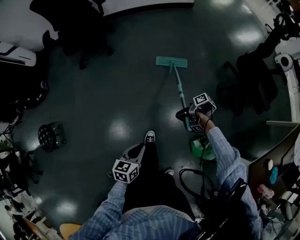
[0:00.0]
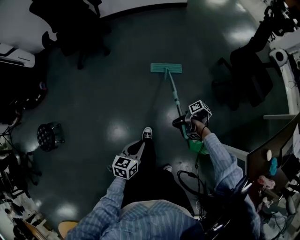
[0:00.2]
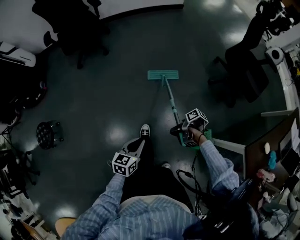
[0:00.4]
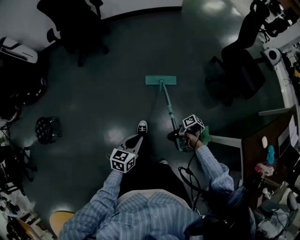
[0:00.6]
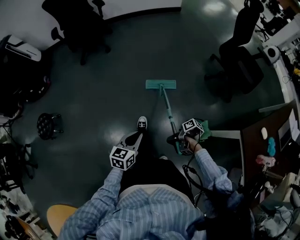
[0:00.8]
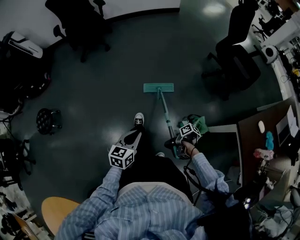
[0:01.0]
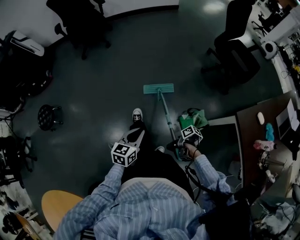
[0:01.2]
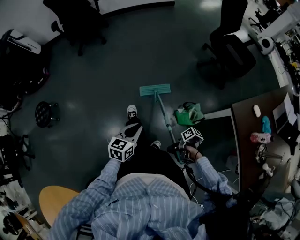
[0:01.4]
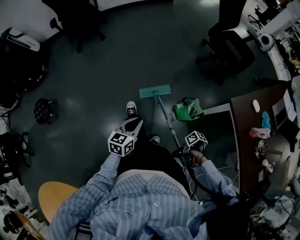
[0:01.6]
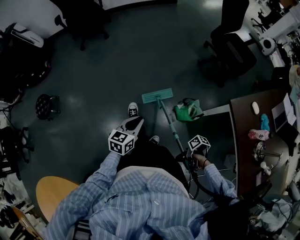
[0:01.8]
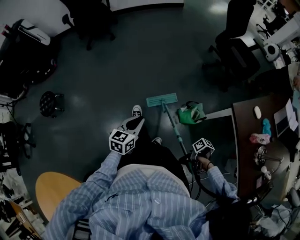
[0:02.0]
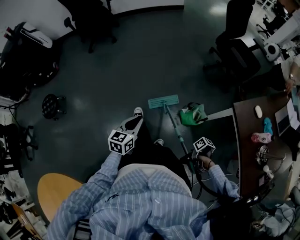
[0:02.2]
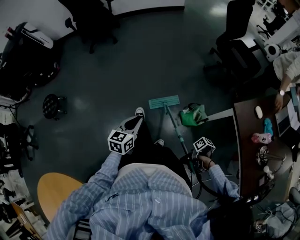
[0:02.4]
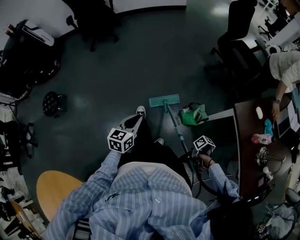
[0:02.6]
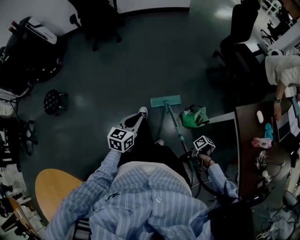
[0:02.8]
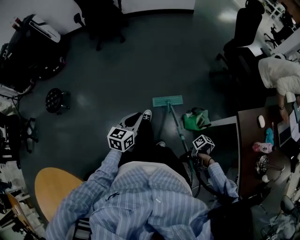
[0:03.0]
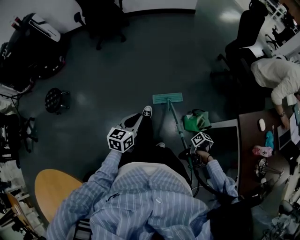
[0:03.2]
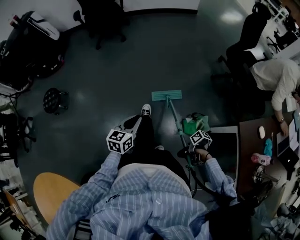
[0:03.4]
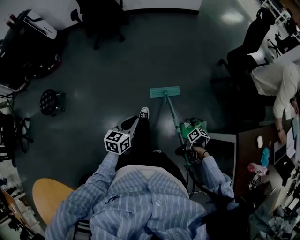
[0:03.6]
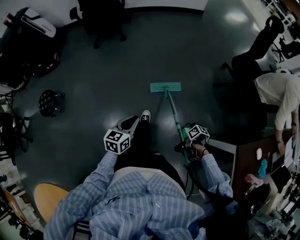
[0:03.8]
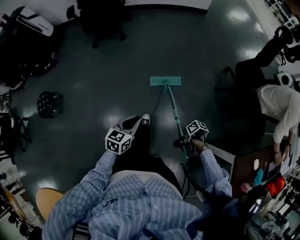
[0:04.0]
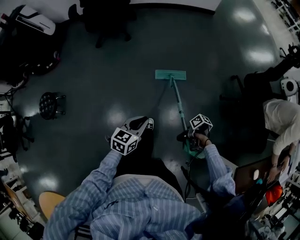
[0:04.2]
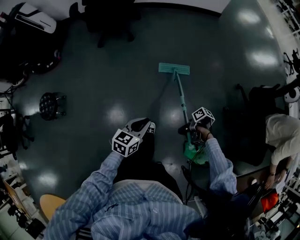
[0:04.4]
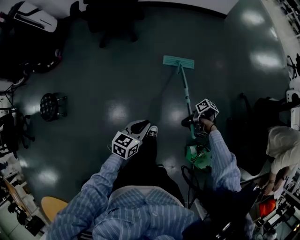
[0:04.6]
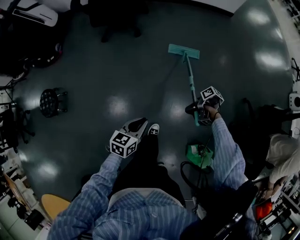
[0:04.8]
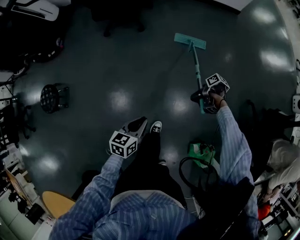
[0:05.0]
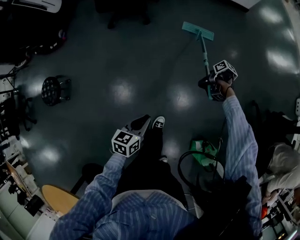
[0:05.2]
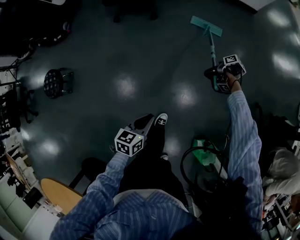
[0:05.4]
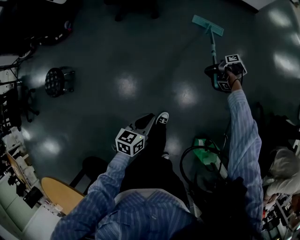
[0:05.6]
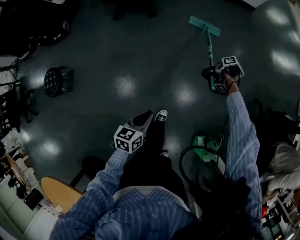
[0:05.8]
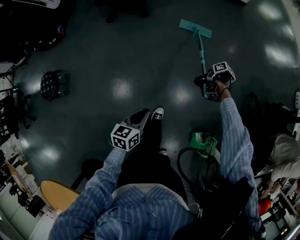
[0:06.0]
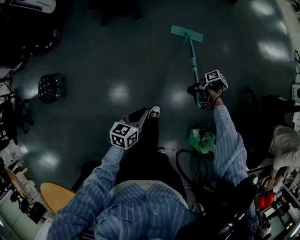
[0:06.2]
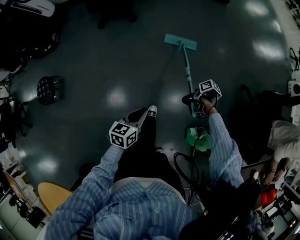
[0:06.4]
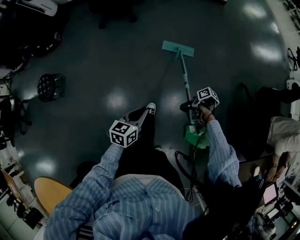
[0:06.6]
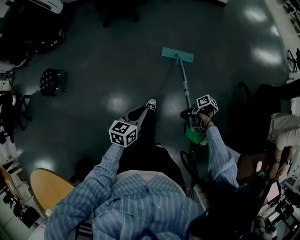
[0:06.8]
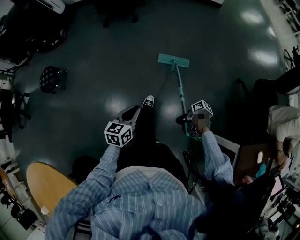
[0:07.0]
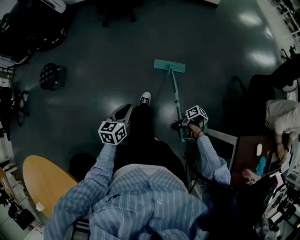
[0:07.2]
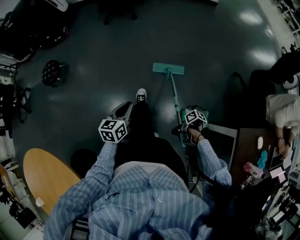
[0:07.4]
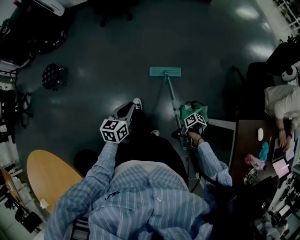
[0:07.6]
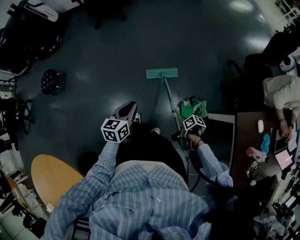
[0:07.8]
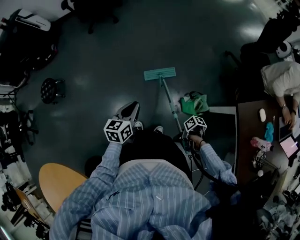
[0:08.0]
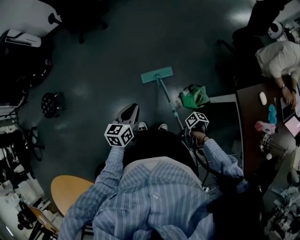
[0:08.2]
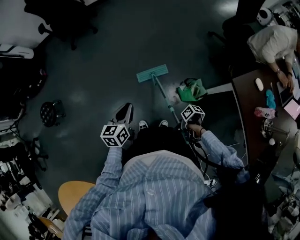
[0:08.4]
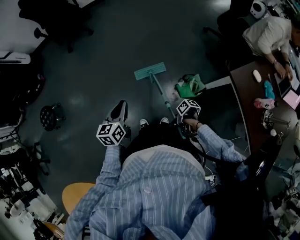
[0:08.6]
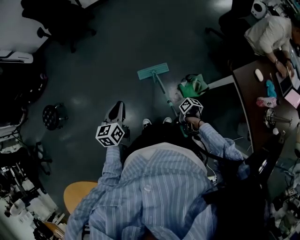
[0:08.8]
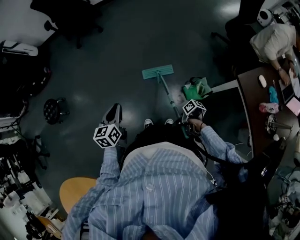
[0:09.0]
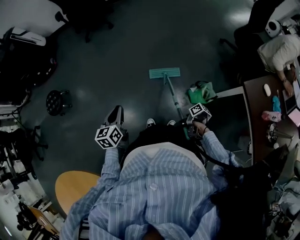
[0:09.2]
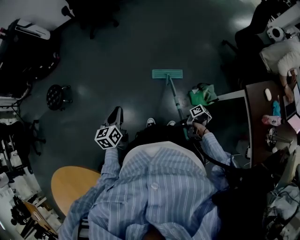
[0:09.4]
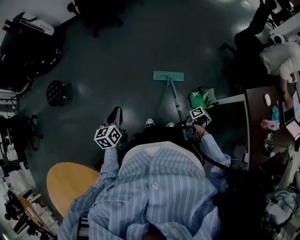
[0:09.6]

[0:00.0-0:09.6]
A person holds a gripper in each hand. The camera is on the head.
0:00.0 to 0:01.6: The left gripper shifts by approximately 30 cm.
0:01.6 to 0:03.2: The left gripper ends up approximately 10 cm from where it was.
0:03.2 to 0:04.8: The left gripper moves approximately 40 cm.
0:04.8 to 0:06.4: The left gripper moves approximately 10 cm.
0:06.4 to 0:08.0: The left gripper shifts by about 30 cm.
0:08.0 to 0:09.6: The left gripper moves approximately 20 cm.

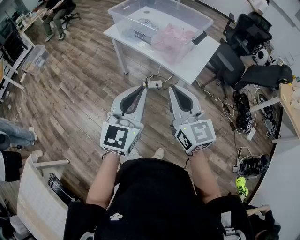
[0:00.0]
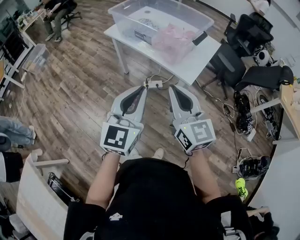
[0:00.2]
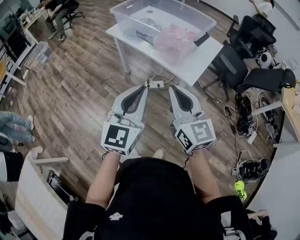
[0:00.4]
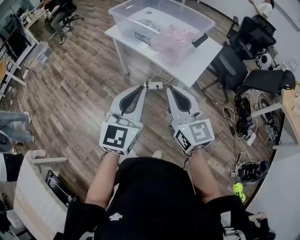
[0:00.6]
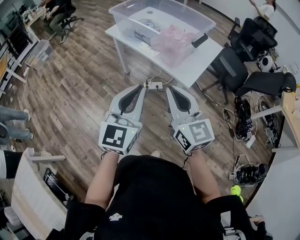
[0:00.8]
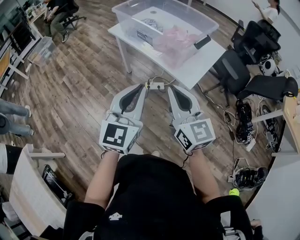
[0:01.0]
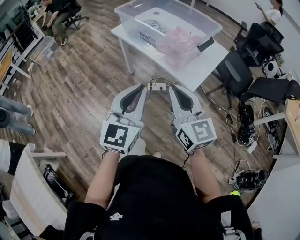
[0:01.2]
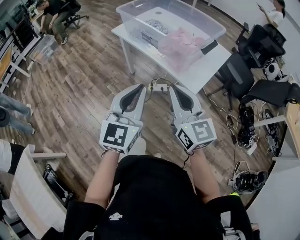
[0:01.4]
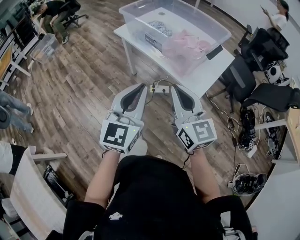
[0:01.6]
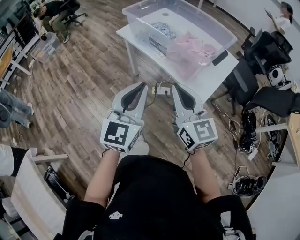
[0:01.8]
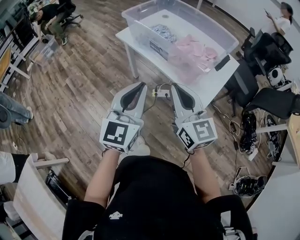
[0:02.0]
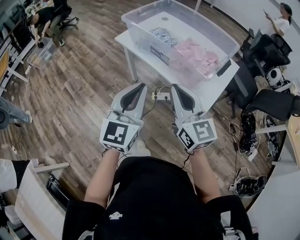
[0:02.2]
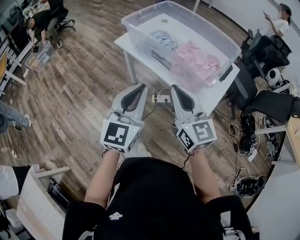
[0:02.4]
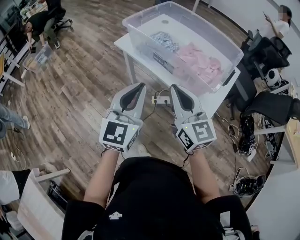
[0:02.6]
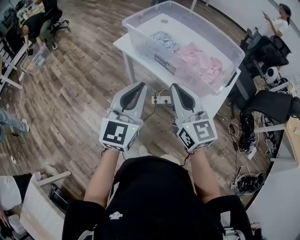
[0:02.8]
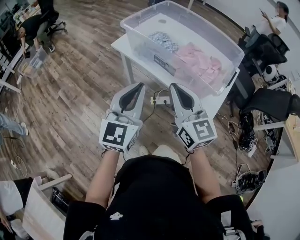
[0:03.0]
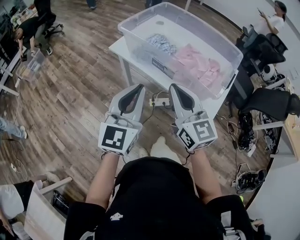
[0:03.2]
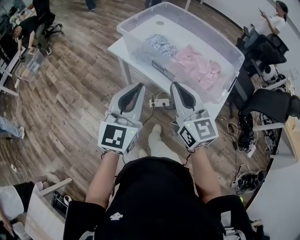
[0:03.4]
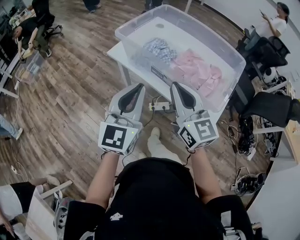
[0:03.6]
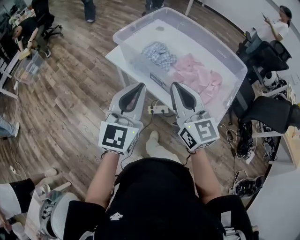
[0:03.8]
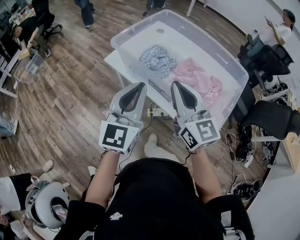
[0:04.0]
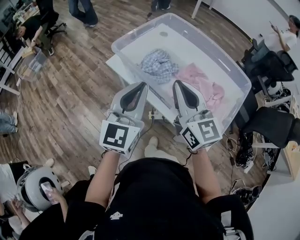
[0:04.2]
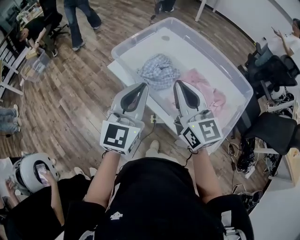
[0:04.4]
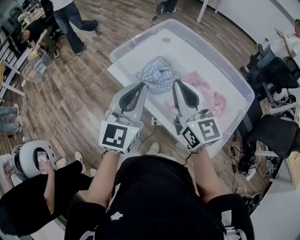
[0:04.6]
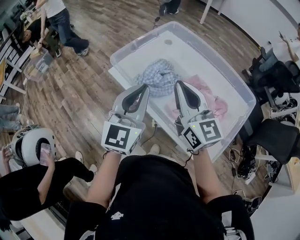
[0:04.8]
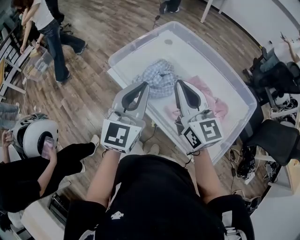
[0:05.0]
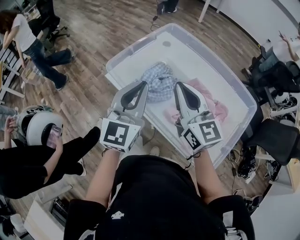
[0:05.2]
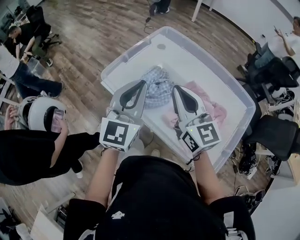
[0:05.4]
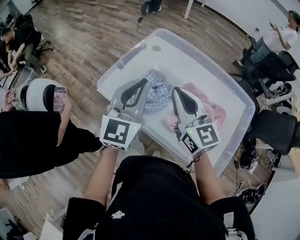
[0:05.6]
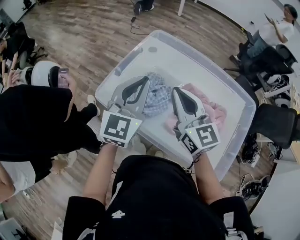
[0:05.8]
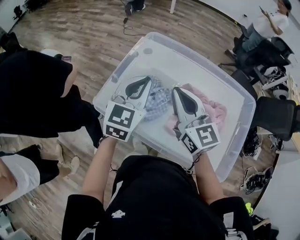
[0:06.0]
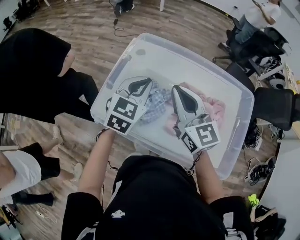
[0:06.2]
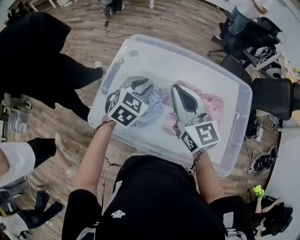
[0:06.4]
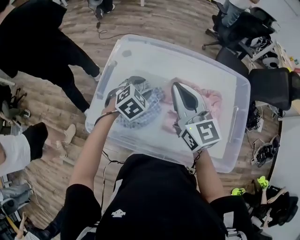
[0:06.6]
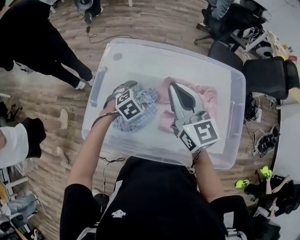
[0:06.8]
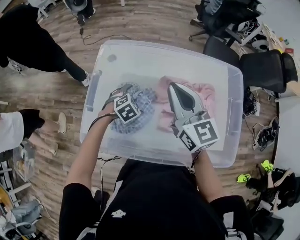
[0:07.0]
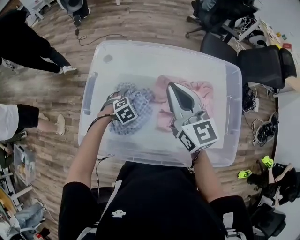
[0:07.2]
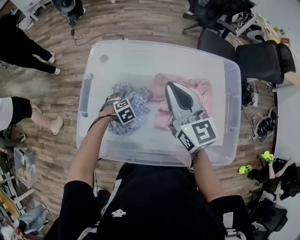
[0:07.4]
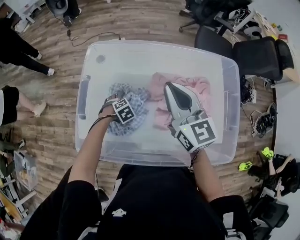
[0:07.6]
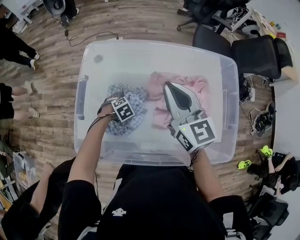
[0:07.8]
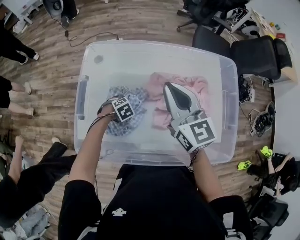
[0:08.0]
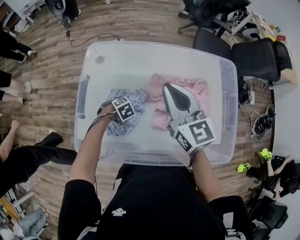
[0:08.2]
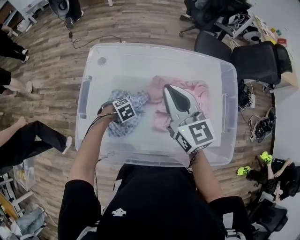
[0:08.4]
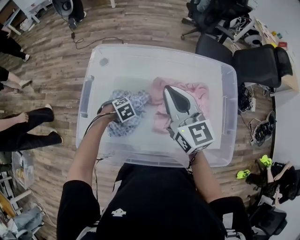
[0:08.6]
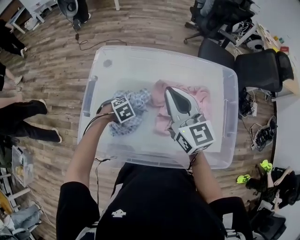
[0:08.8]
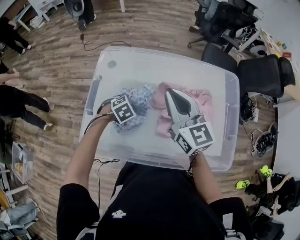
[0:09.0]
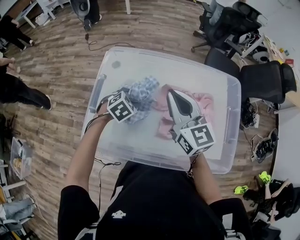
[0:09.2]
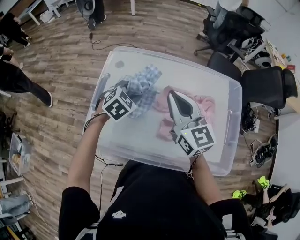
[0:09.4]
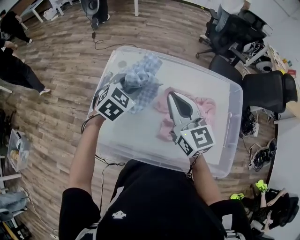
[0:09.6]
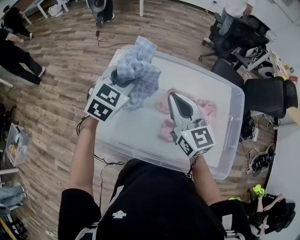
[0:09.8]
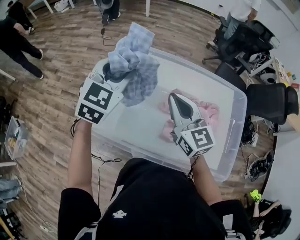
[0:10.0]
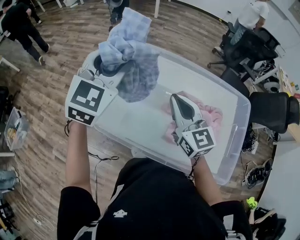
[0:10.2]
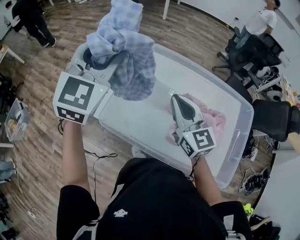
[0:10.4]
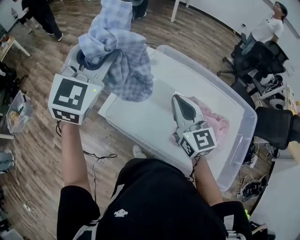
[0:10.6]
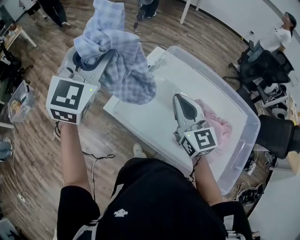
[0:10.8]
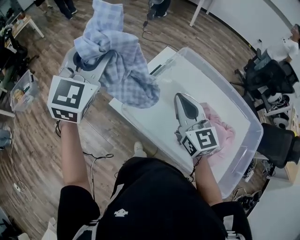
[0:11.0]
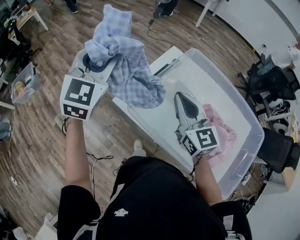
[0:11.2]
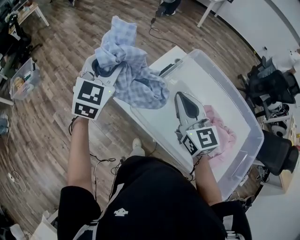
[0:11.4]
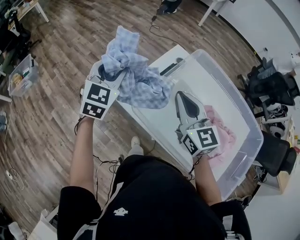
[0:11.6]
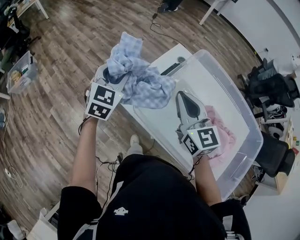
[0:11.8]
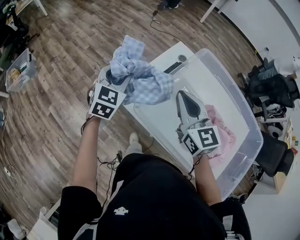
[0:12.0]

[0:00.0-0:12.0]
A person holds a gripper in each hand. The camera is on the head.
0:00.0 to 0:01.6: Both grippers move forward, approximately 10 cm.
0:01.6 to 0:03.0: The grippers both shift forward and to the left by roughly 20 cm.
0:03.0 to 0:04.4: Both grippers travel together forward, some 20 cm.
0:04.4 to 0:06.0: The grippers both shift forward by roughly 20 cm. The left gripper changes its angle by approximately 30 degrees.
0:06.0 to 0:07.6: The right gripper moves about 10 cm, and turns by roughly 20 degrees, while the left gripper is displaced downward by approximately 40 cm, tips its fingers downward by approximately 60 degrees, and opens.
0:07.6 to 0:09.0: The left gripper is displaced upward by about 10 cm, and closes up.
0:09.0 to 0:10.4: The right gripper ends up approximately 10 cm from where it was. The left gripper travels upward by approximately 40 cm, and points its fingers some 60 degrees further upward.
0:10.4 to 0:12.0: The left gripper goes some 30 cm downward and to the left, and turns by some 30 degrees; the right gripper goes some 15 cm to the left.

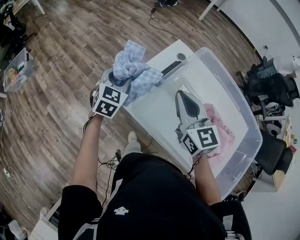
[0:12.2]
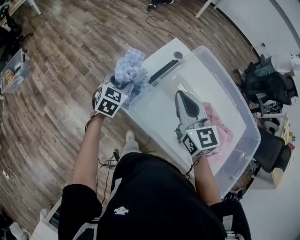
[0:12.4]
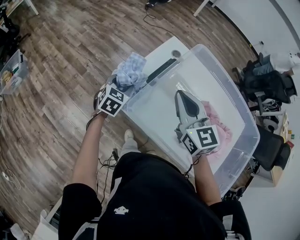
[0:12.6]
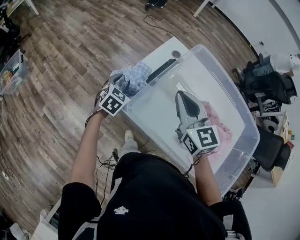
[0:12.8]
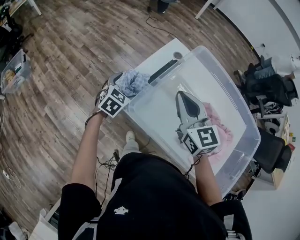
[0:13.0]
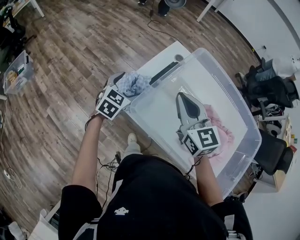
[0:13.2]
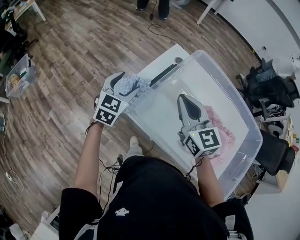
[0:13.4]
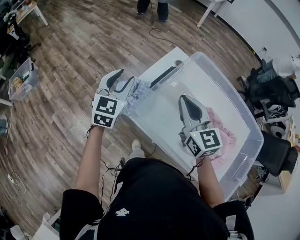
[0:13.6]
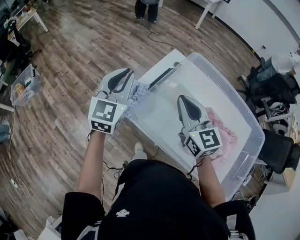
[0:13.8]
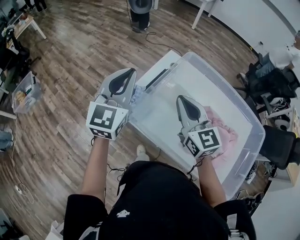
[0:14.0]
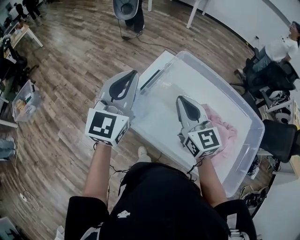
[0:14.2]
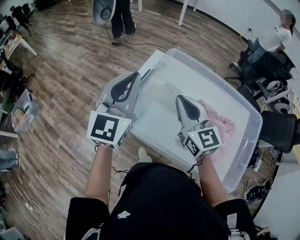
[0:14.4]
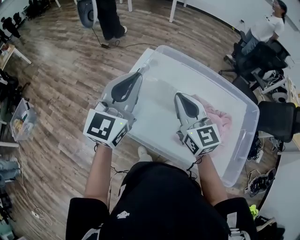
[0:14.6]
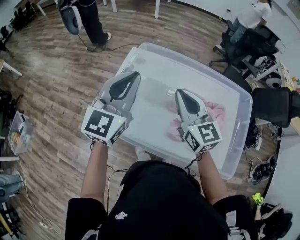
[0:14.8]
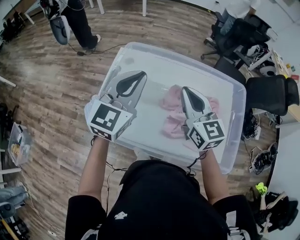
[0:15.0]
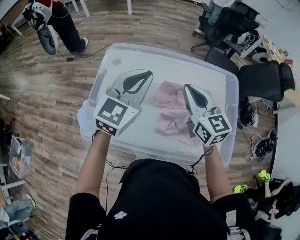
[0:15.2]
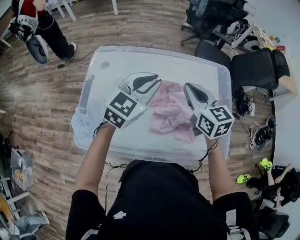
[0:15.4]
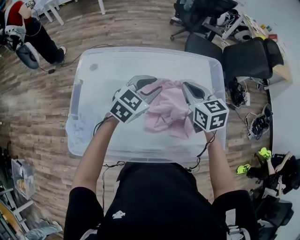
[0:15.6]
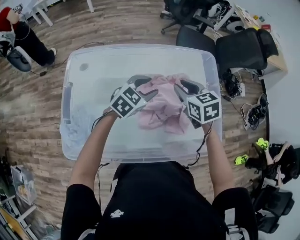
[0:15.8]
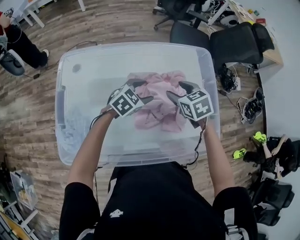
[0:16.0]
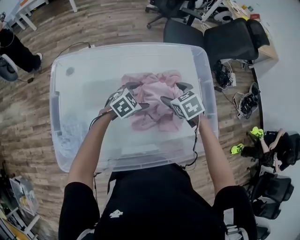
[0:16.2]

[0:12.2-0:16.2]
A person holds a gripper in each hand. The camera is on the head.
0:12.2 to 0:13.6: The left gripper travels upward by some 10 cm, and opens, then closes again.
0:13.6 to 0:14.8: The right gripper moves to the right, approximately 15 cm, while the left gripper heads to the right and upward, covering approximately 25 cm, and changes its angle by roughly 30 degrees.
0:14.8 to 0:16.2: The left gripper heads downward, covering approximately 35 cm, points its fingers approximately 50 degrees further downward, and opens. The right gripper shifts by roughly 35 cm, points its fingers approximately 50 degrees further downward, and opens.
